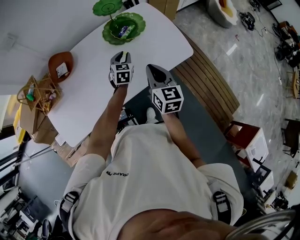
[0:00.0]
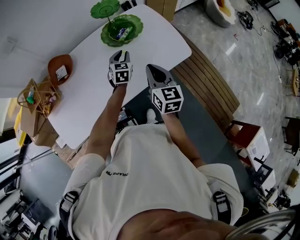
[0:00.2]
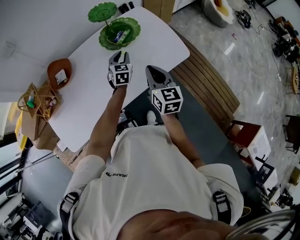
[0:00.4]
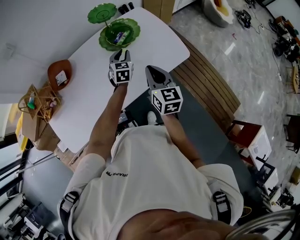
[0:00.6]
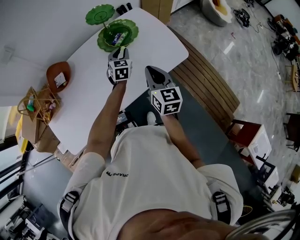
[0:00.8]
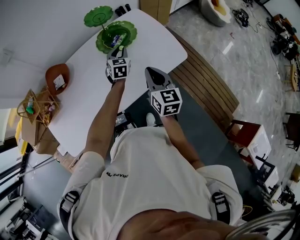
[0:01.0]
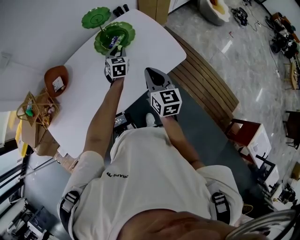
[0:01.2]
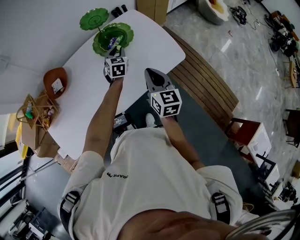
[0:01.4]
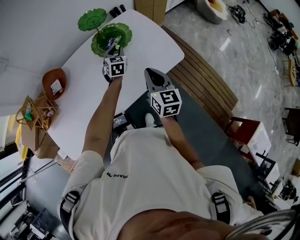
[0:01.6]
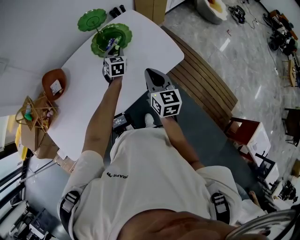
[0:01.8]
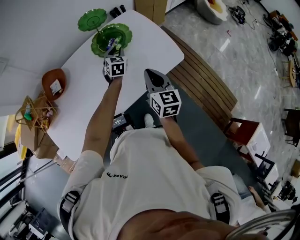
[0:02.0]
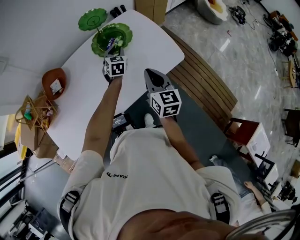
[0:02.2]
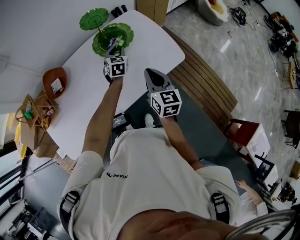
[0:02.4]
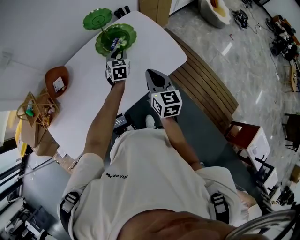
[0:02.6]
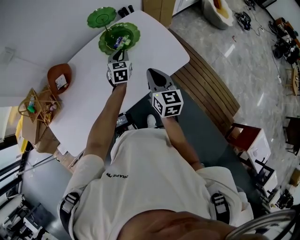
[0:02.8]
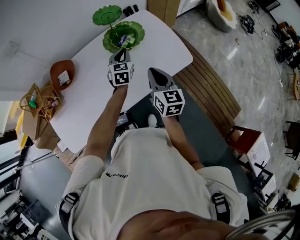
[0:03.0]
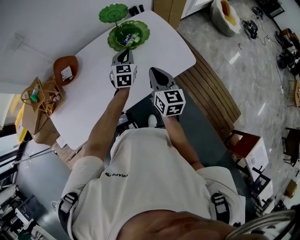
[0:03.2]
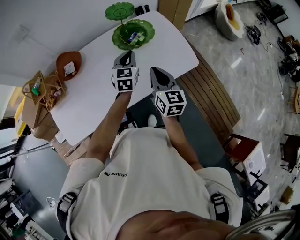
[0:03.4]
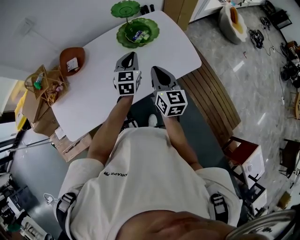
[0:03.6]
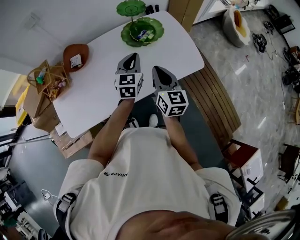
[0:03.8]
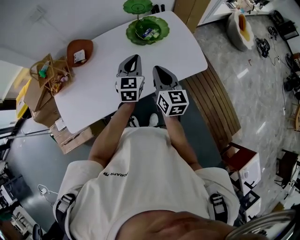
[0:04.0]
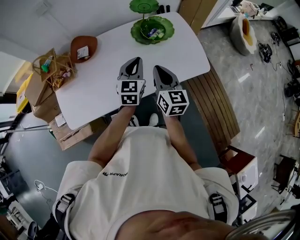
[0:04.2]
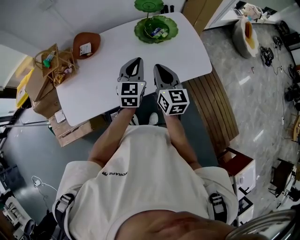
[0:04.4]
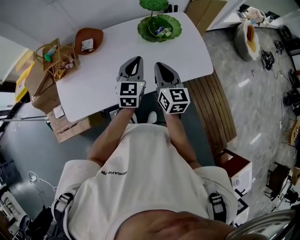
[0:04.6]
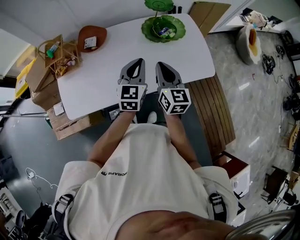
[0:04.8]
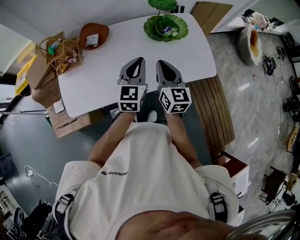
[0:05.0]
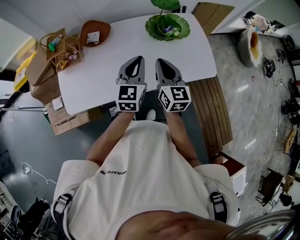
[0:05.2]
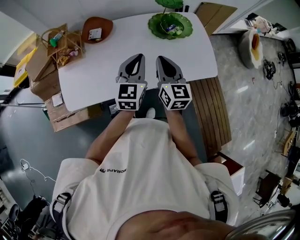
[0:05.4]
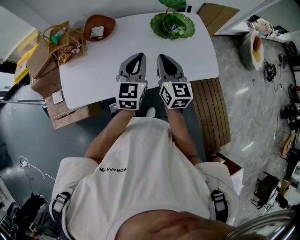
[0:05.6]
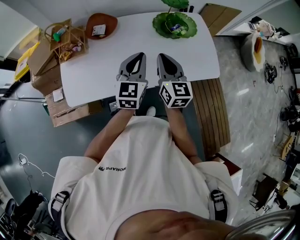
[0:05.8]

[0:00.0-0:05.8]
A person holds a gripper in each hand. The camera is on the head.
0:00.0 to 0:01.4: The left gripper travels forward by some 10 cm.
0:01.4 to 0:02.8: There are only small adjustments of the grippers.
0:02.8 to 0:04.4: The left gripper shifts approximately 20 cm backward, upward and to the left, while the right gripper shifts roughly 10 cm to the left.
0:04.4 to 0:05.8: The grippers both shift to the left by some 5 cm.

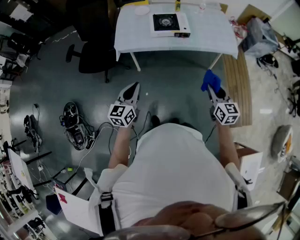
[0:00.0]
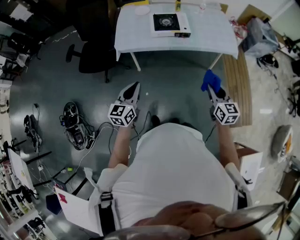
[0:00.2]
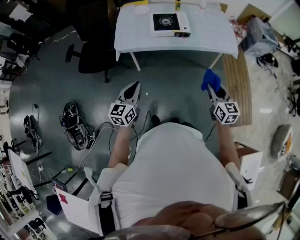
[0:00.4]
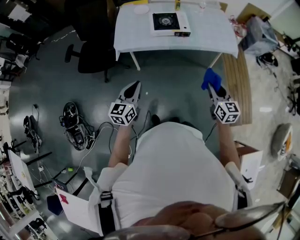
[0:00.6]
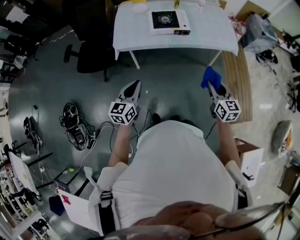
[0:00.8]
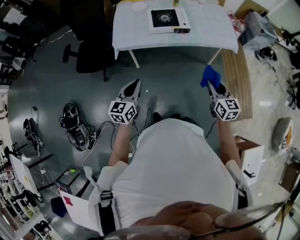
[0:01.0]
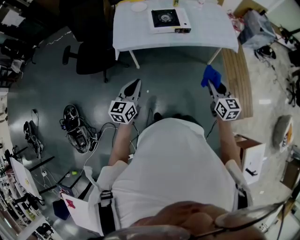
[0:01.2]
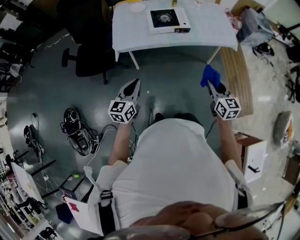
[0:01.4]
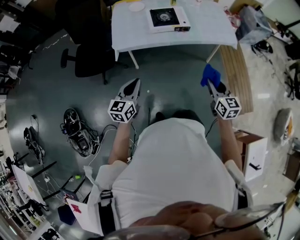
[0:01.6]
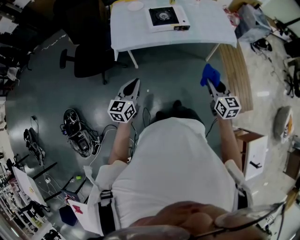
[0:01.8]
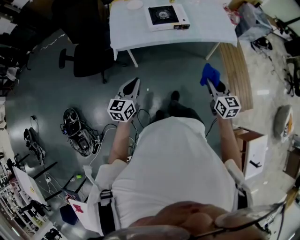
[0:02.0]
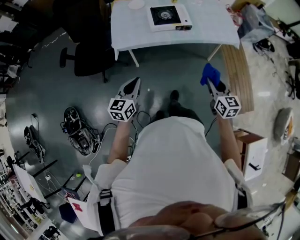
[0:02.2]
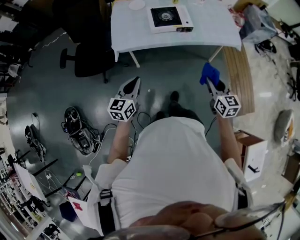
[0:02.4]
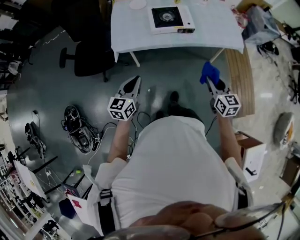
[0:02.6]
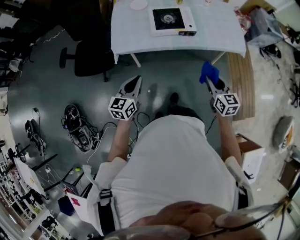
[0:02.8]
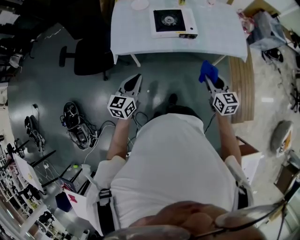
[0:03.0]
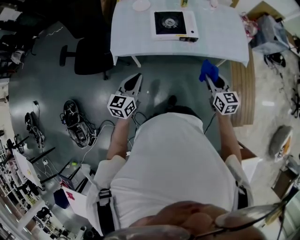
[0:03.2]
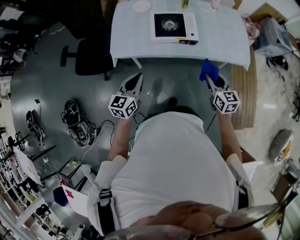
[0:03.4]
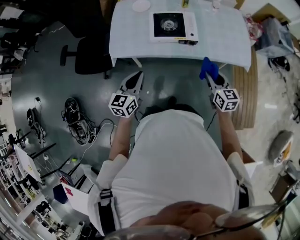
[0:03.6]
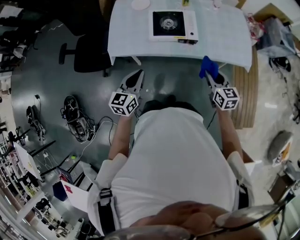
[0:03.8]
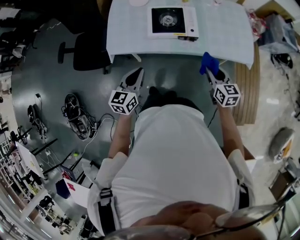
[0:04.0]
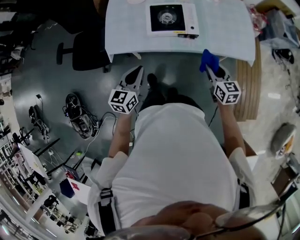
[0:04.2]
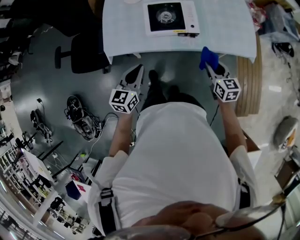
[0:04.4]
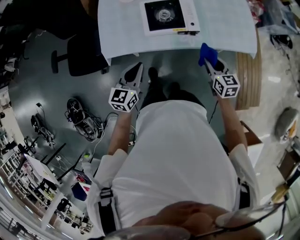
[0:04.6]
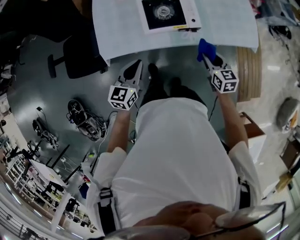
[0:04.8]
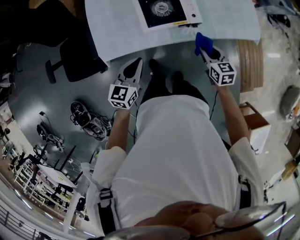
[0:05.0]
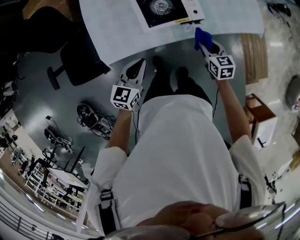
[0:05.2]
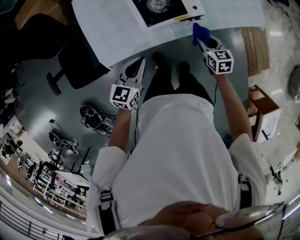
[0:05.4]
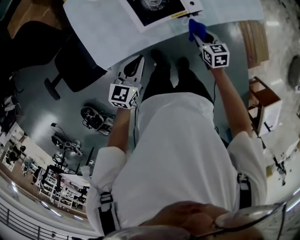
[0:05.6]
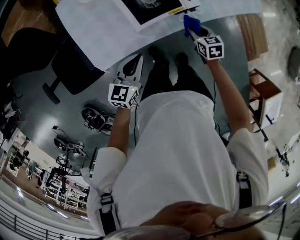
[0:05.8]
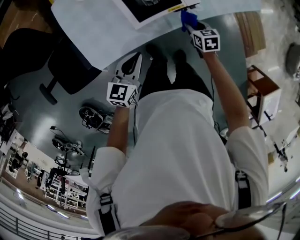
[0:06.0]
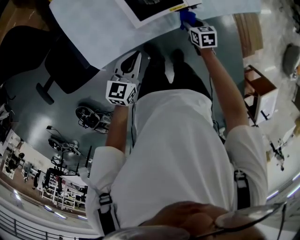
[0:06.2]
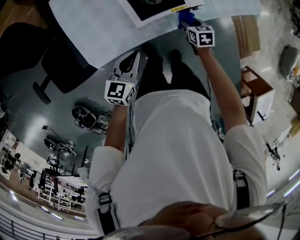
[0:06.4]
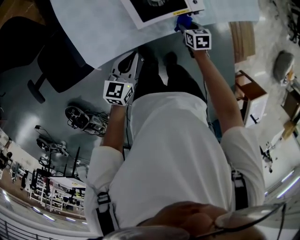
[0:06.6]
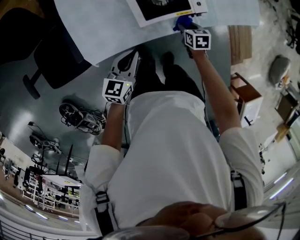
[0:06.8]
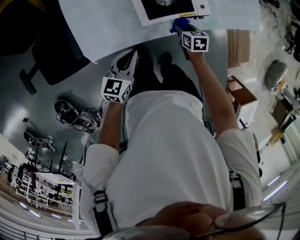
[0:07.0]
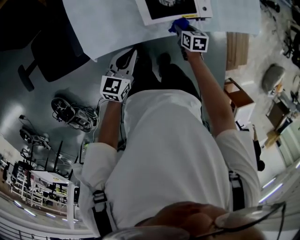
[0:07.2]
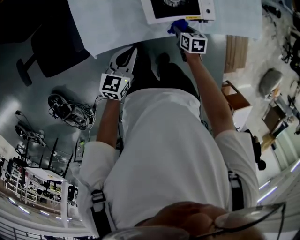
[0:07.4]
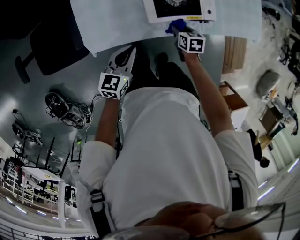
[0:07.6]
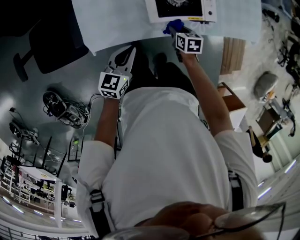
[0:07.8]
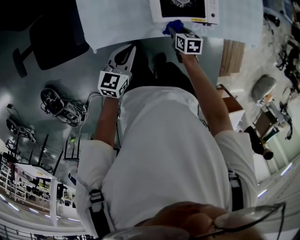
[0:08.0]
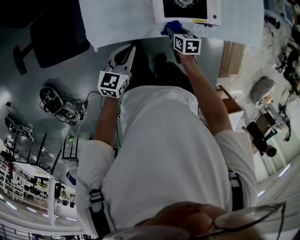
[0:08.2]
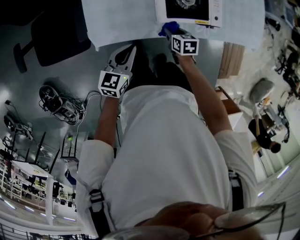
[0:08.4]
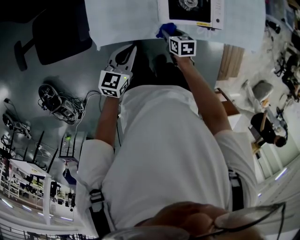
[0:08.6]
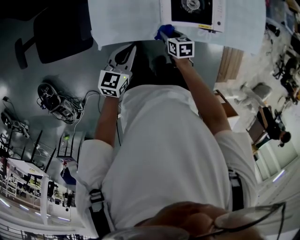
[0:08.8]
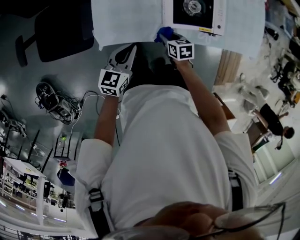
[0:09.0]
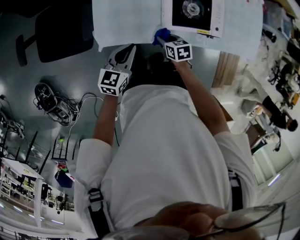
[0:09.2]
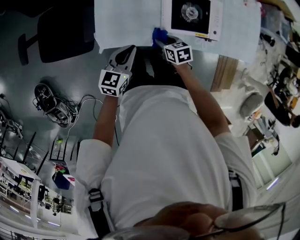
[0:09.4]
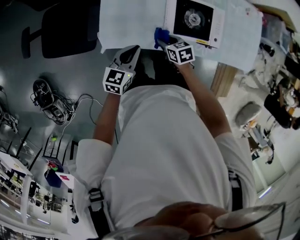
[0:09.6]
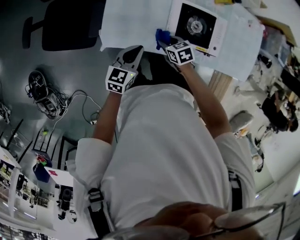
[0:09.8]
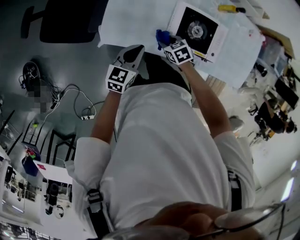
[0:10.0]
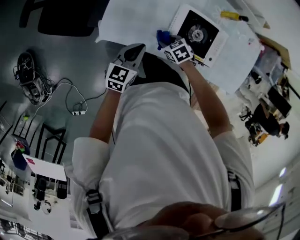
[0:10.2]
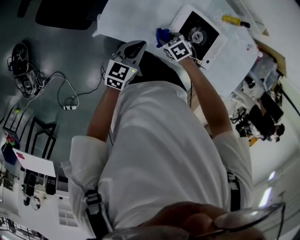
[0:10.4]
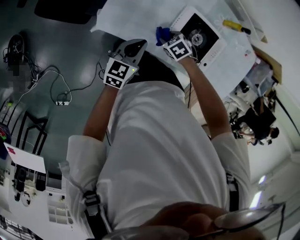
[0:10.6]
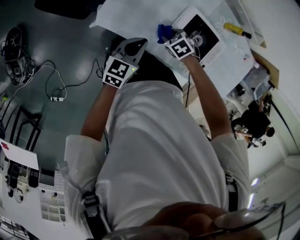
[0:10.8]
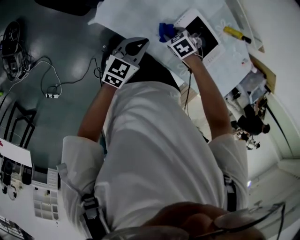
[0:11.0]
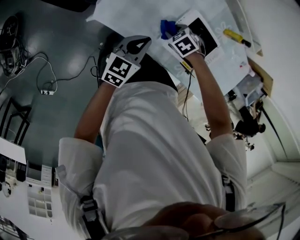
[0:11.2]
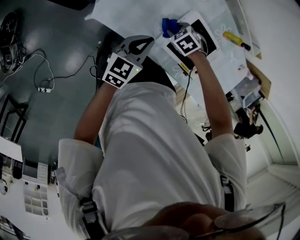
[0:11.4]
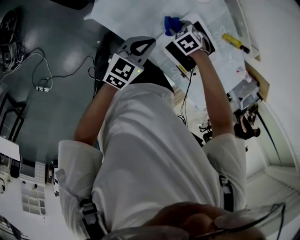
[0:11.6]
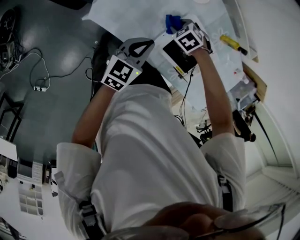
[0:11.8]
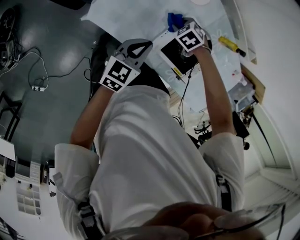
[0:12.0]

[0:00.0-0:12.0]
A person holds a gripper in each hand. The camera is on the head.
0:00.0 to 0:01.6: The two grippers go some 5 cm to the left.
0:01.6 to 0:03.0: Both grippers travel together forward, about 15 cm.
0:03.0 to 0:04.4: The left gripper is displaced forward and to the right by some 15 cm. The right gripper travels forward and downward by about 15 cm.
0:04.4 to 0:06.0: Both grippers move downward, forward and to the left, about 20 cm. The right gripper changes its angle by some 30 degrees. Meanwhile the left gripper swivels about 30 degrees.
0:06.0 to 0:07.6: The right gripper is displaced to the left by approximately 10 cm; the left gripper heads to the left, covering some 5 cm.
0:07.6 to 0:09.0: The right gripper is displaced to the left by some 15 cm. The left gripper is displaced to the left by approximately 5 cm.
0:09.0 to 0:10.4: The right gripper changes place by some 5 cm, and rotates around the line of its fingers by some 50 degrees, counterclockwise from behind.
0:10.4 to 0:12.0: The right gripper changes place by about 15 cm, and swivels about 30 degrees. Meanwhile the left gripper shifts by some 5 cm.

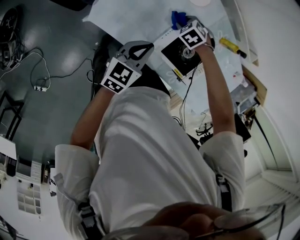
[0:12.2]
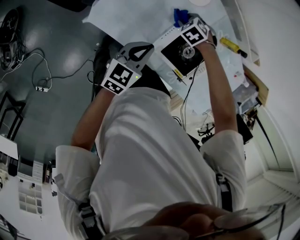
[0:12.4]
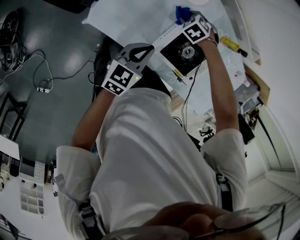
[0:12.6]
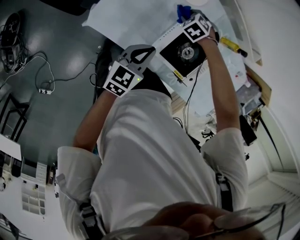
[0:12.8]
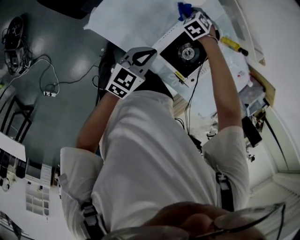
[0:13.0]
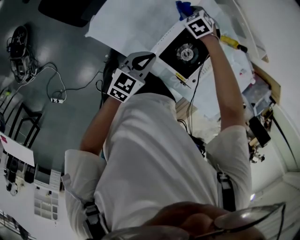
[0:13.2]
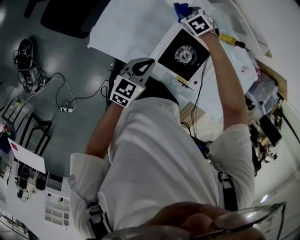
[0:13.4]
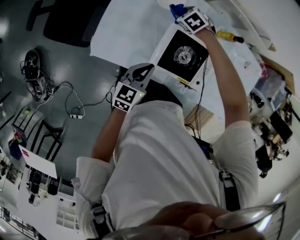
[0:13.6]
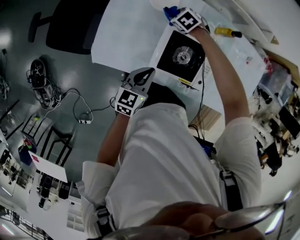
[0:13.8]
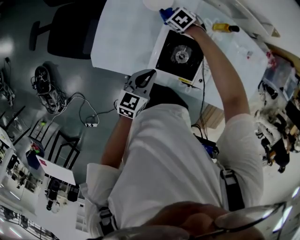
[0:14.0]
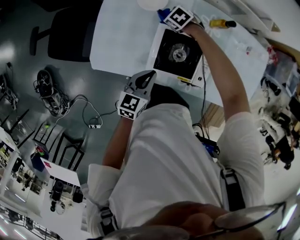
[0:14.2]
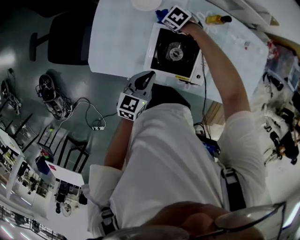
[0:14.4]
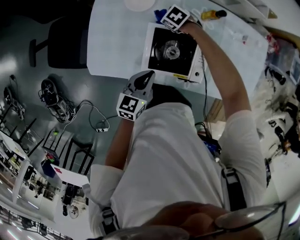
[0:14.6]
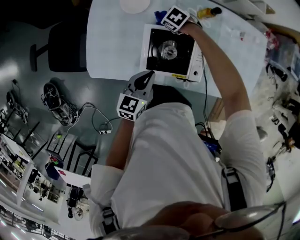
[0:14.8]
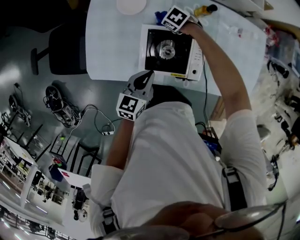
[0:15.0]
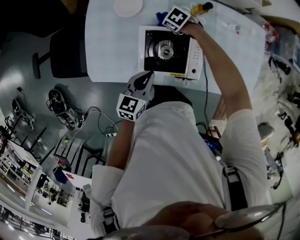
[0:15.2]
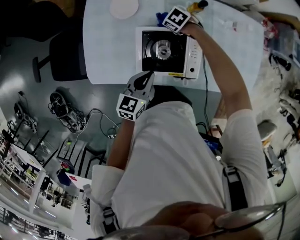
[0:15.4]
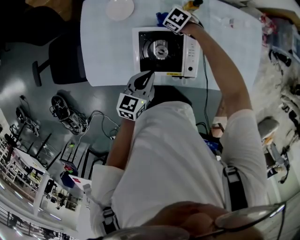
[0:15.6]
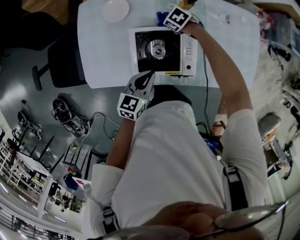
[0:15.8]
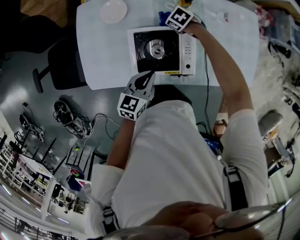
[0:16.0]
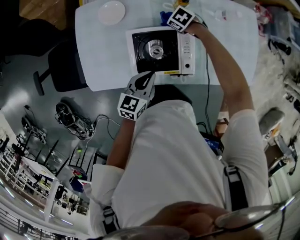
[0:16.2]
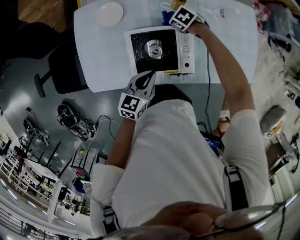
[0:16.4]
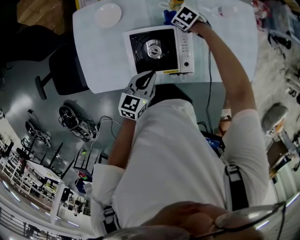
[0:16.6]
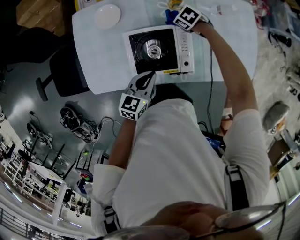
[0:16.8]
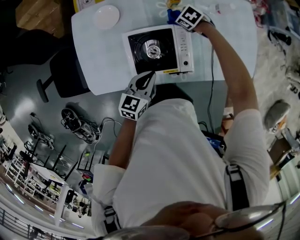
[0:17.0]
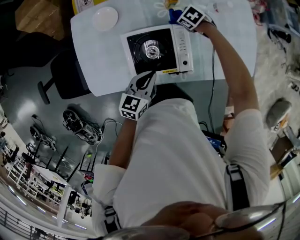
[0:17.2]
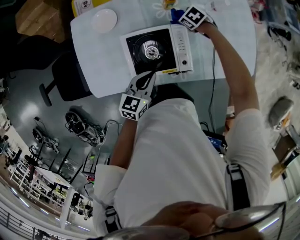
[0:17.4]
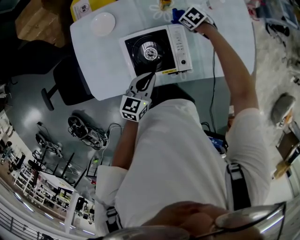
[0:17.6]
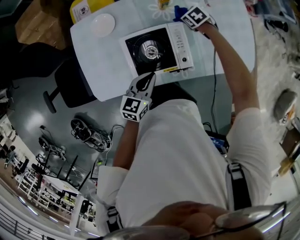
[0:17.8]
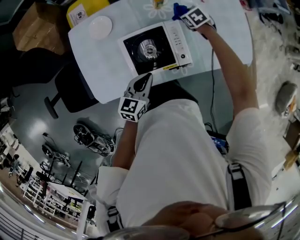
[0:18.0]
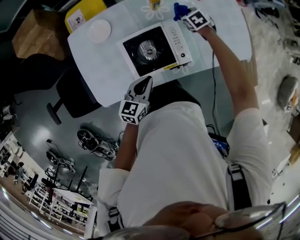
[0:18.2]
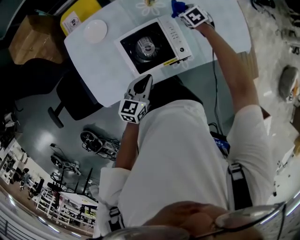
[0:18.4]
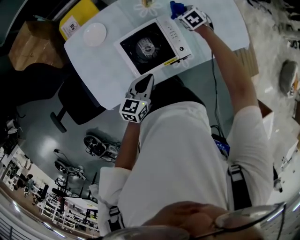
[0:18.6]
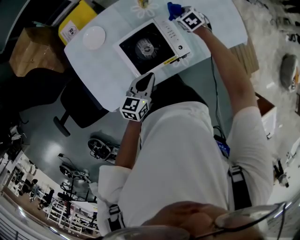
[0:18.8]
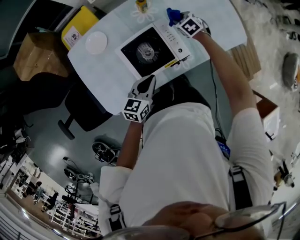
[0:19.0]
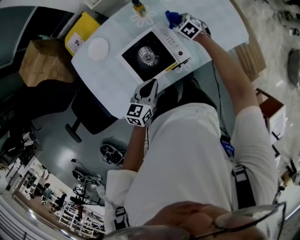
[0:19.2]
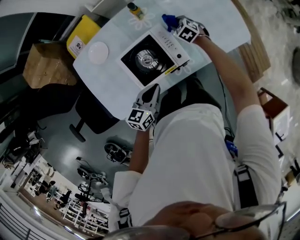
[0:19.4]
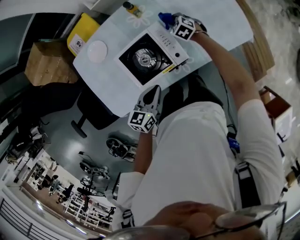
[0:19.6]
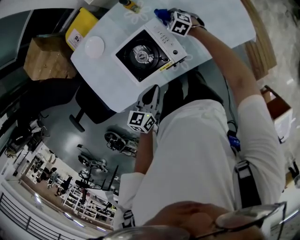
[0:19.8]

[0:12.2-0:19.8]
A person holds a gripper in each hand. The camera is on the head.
0:12.2 to 0:13.8: The left gripper shifts by about 10 cm. Meanwhile the right gripper ends up some 10 cm from where it was, and swivels about 30 degrees.
0:13.8 to 0:15.2: The left gripper shifts by about 10 cm. The right gripper ends up about 10 cm from where it was.
0:15.2 to 0:16.8: The right gripper moves roughly 15 cm, while the left gripper ends up approximately 5 cm from where it was.
0:16.8 to 0:18.2: The right gripper changes place by some 10 cm, and swivels roughly 30 degrees.
0:18.2 to 0:19.8: The left gripper moves to the right, some 5 cm. The right gripper moves some 5 cm.
